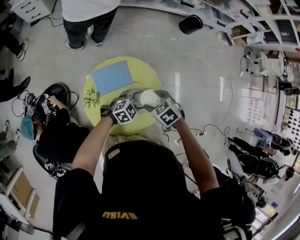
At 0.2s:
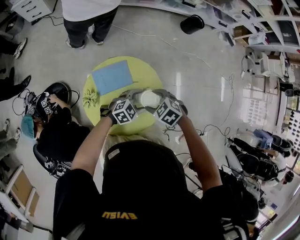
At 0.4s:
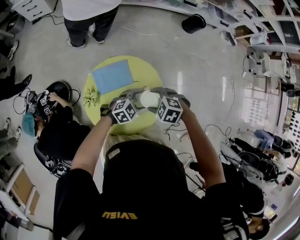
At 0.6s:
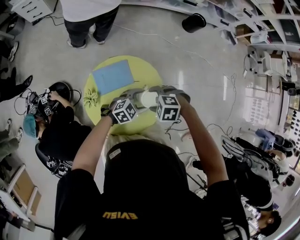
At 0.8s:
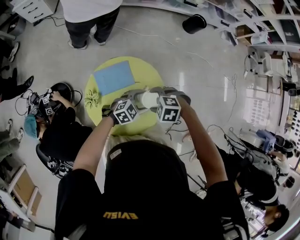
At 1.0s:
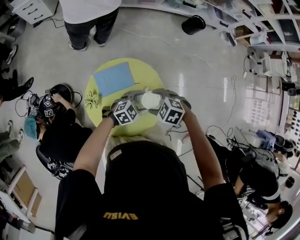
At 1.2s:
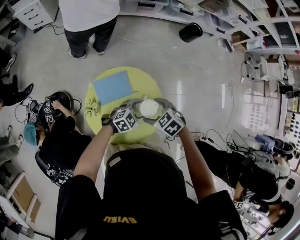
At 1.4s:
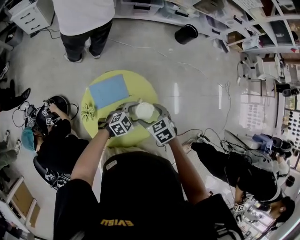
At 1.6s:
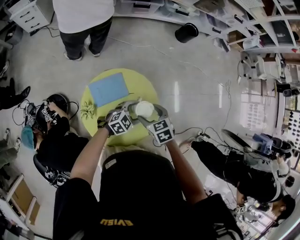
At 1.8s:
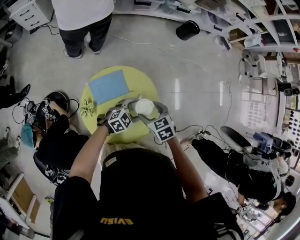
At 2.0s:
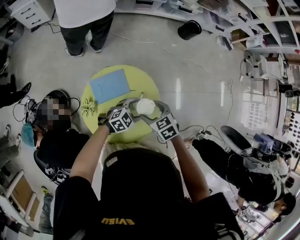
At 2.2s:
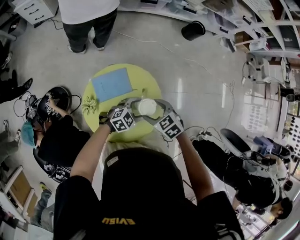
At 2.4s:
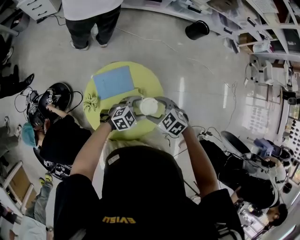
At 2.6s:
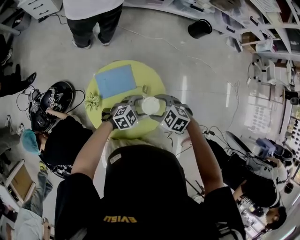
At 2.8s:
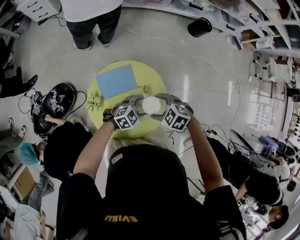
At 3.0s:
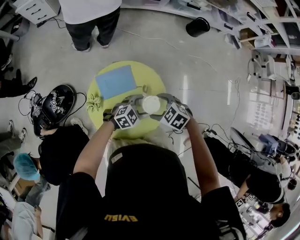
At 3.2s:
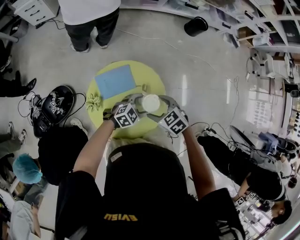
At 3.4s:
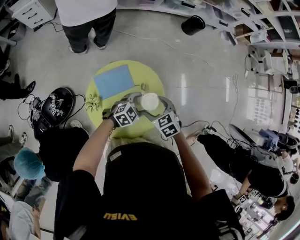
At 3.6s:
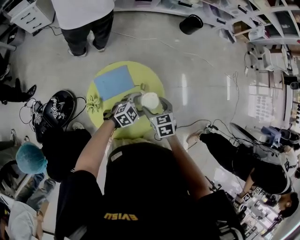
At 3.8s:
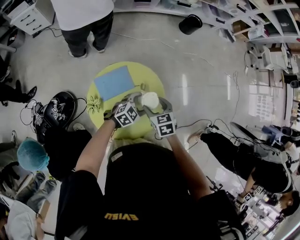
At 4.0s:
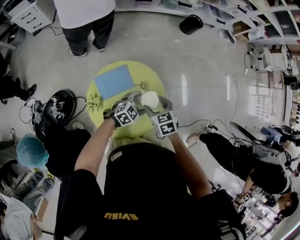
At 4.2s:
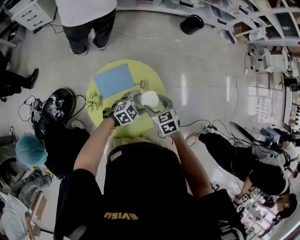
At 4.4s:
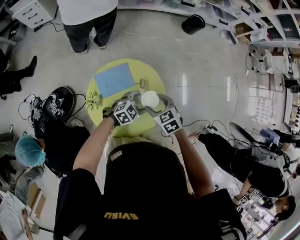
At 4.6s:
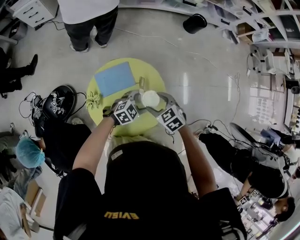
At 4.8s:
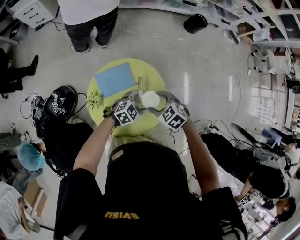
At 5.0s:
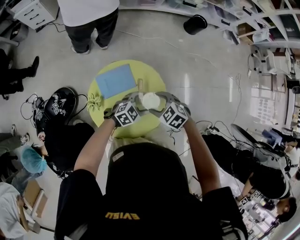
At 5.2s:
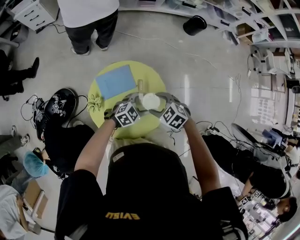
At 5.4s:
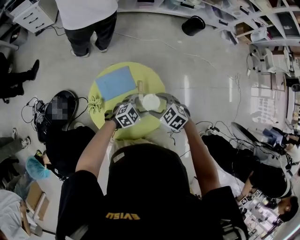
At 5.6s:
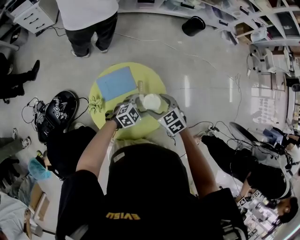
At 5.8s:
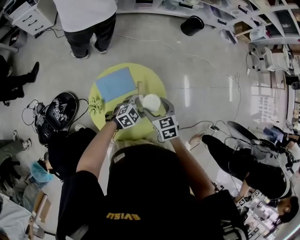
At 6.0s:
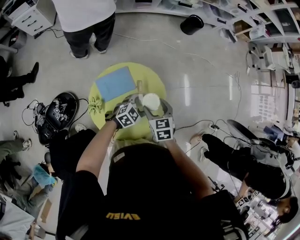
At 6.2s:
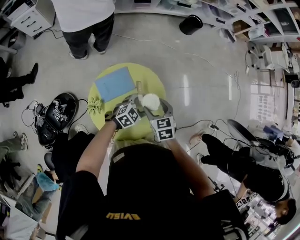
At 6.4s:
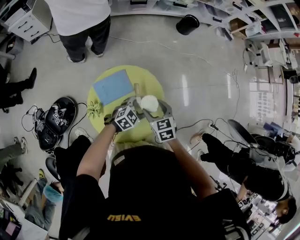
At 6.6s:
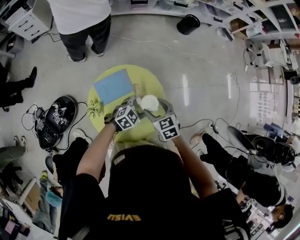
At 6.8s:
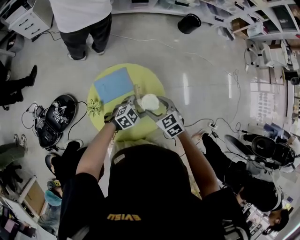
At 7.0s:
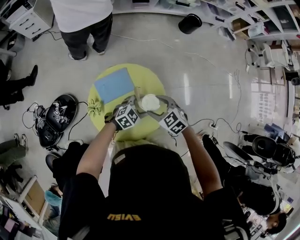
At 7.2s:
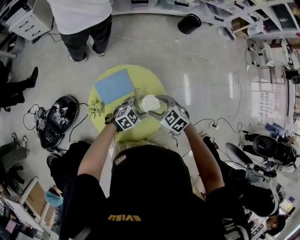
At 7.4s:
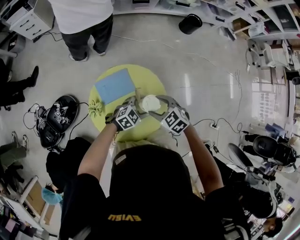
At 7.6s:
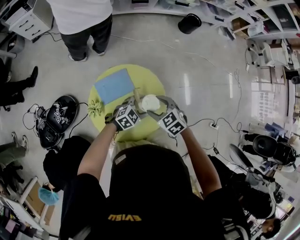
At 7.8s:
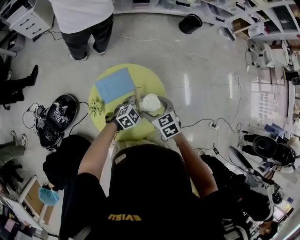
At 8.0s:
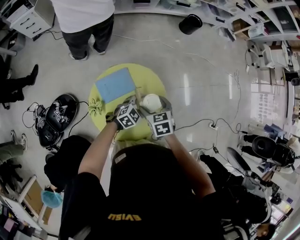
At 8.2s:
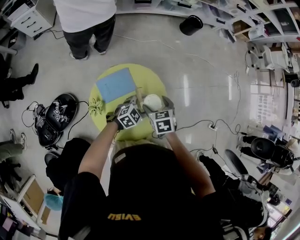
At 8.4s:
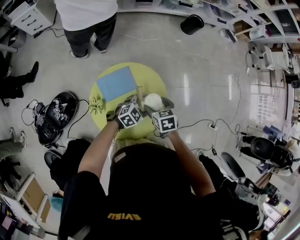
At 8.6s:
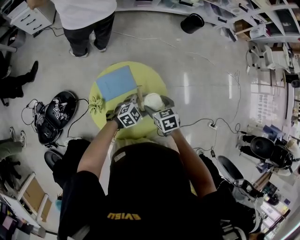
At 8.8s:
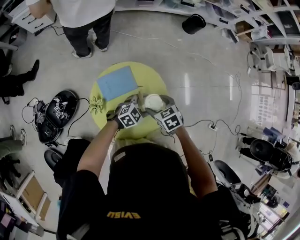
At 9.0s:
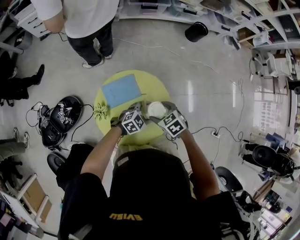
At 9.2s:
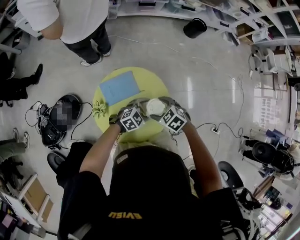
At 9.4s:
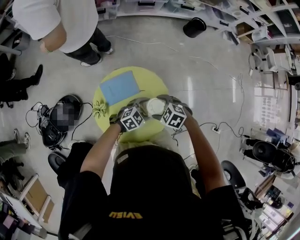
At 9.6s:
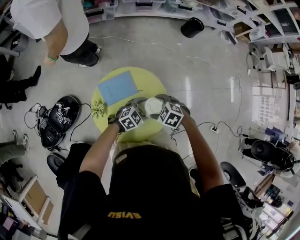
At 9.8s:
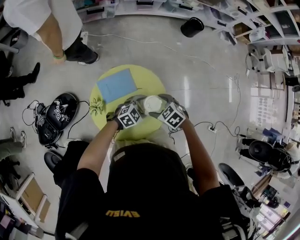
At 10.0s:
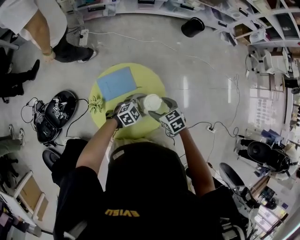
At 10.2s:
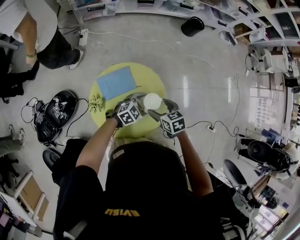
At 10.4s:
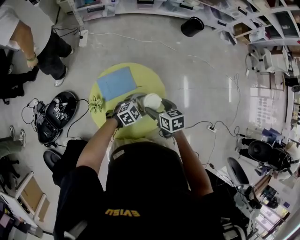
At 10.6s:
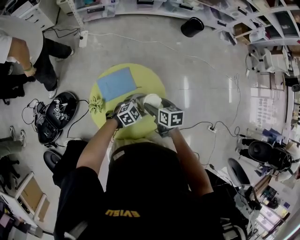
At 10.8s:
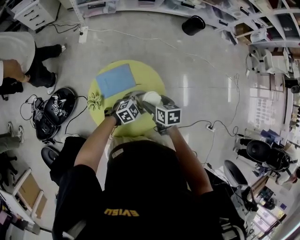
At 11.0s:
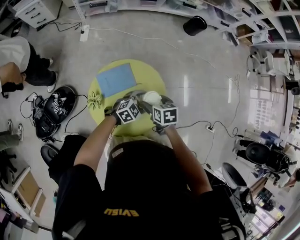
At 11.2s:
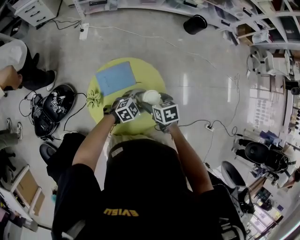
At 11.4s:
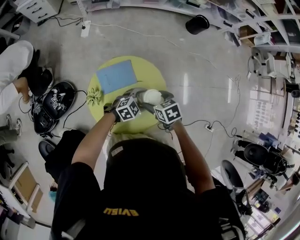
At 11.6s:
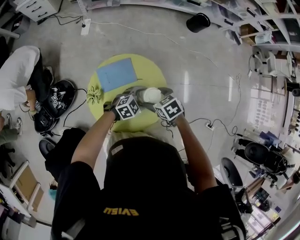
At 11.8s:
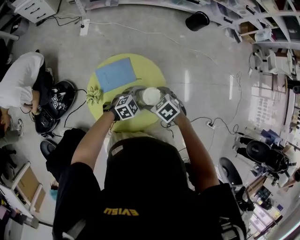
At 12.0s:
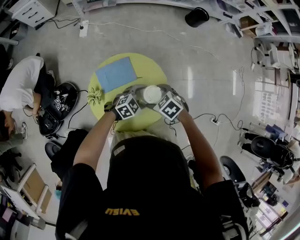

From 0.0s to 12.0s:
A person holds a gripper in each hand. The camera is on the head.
From 0.0s to 1.6s: The right gripper turns by about 20 degrees.
From 1.6s to 3.0s: The right gripper turns by approximately 40 degrees.
From 3.0s to 4.4s: The right gripper turns by some 30 degrees.
From 4.4s to 6.0s: The right gripper rotates some 20 degrees.
From 6.0s to 7.6s: The right gripper turns by about 30 degrees.
From 9.0s to 10.4s: The right gripper turns by about 30 degrees.
From 10.4s to 12.0s: The right gripper turns by approximately 40 degrees.

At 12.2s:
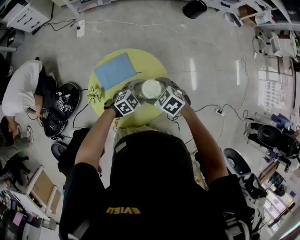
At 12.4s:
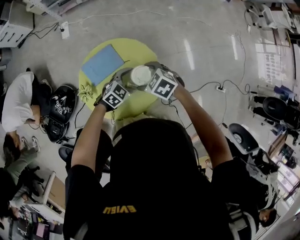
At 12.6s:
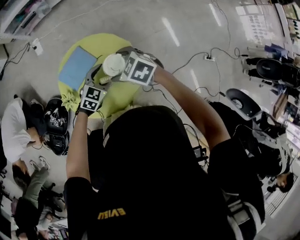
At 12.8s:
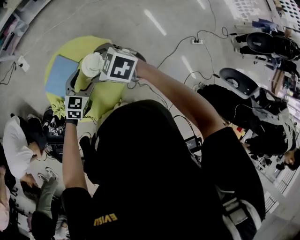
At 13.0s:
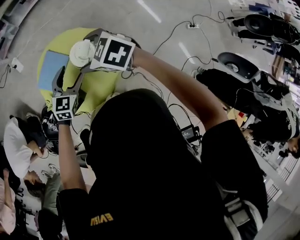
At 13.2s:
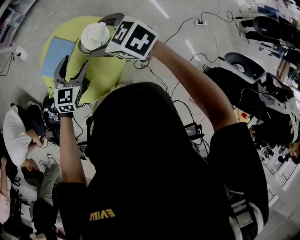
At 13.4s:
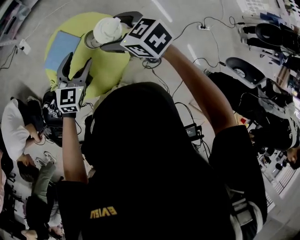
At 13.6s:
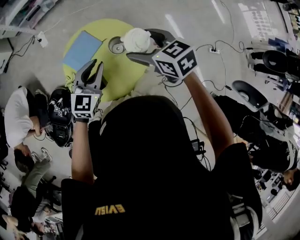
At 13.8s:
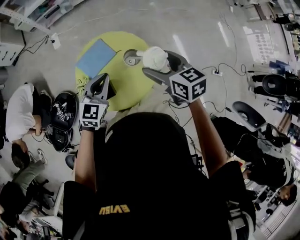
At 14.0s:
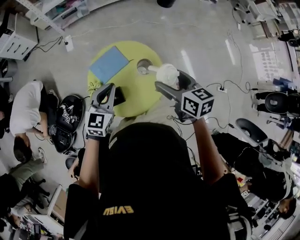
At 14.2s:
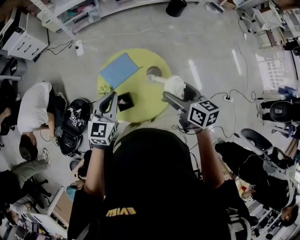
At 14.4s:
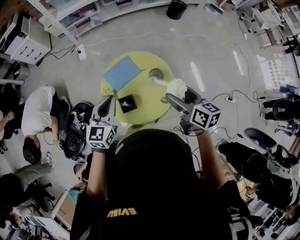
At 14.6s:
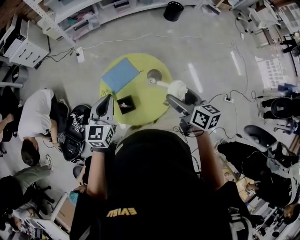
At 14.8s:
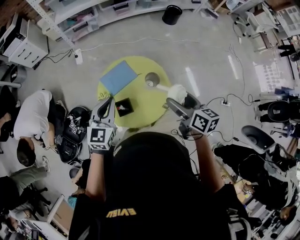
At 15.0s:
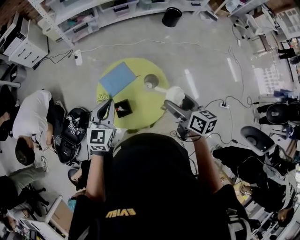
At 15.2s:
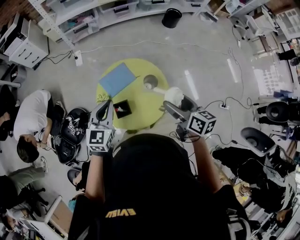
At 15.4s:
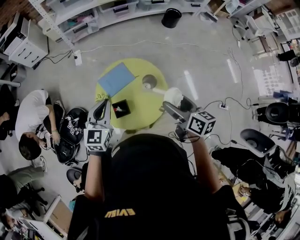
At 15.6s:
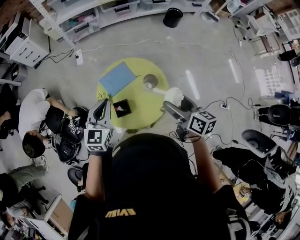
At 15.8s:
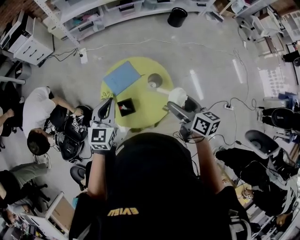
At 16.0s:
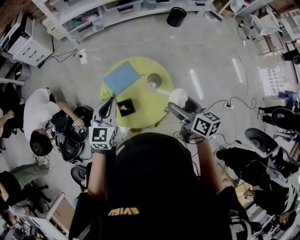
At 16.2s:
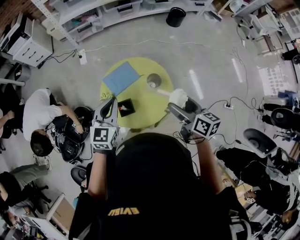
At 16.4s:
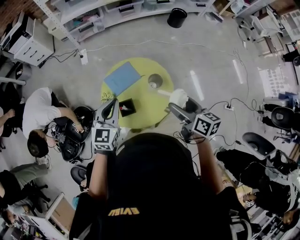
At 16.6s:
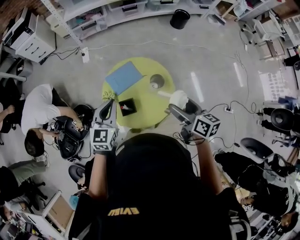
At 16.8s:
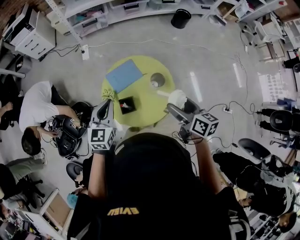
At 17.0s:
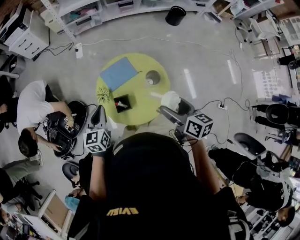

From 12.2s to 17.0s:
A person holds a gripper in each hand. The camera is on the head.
From 12.2s to 13.8s: Both grippers move upward, some 15 cm. The left gripper swivels about 30 degrees, and closes its fingers, while the right gripper rotates roughly 50 degrees.
From 13.8s to 15.4s: The left gripper is displaced to the left and upward by roughly 10 cm; the right gripper moves backward, roughly 5 cm, and turns by approximately 20 degrees.
From 15.4s to 17.0s: The right gripper shifts by approximately 5 cm; the left gripper shifts roughly 10 cm to the left and downward, and changes its angle by some 20 degrees.

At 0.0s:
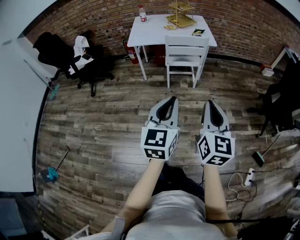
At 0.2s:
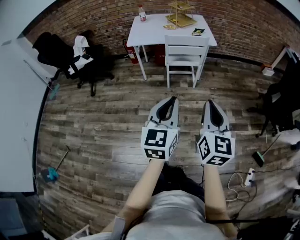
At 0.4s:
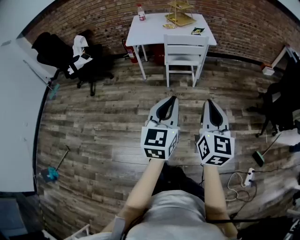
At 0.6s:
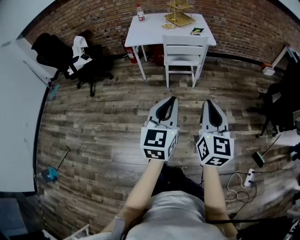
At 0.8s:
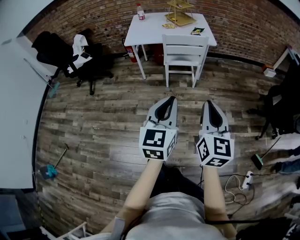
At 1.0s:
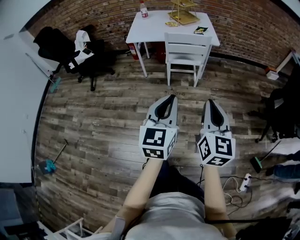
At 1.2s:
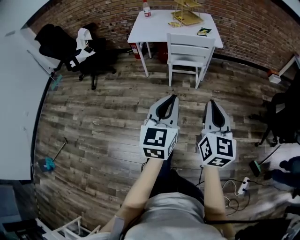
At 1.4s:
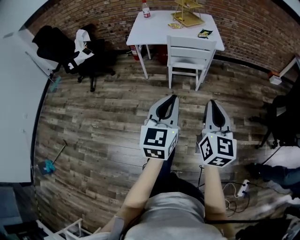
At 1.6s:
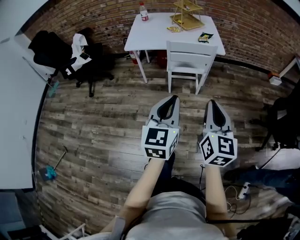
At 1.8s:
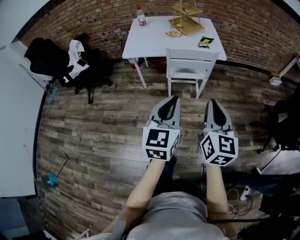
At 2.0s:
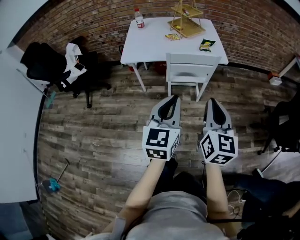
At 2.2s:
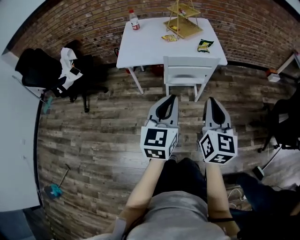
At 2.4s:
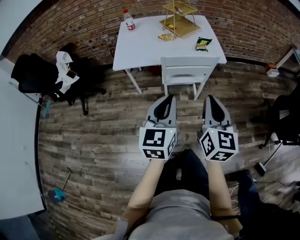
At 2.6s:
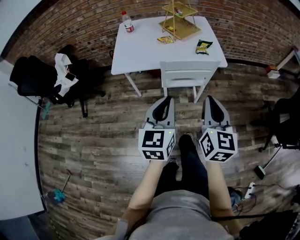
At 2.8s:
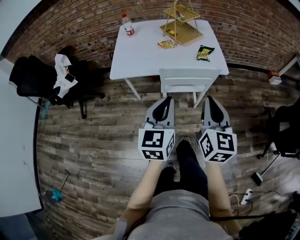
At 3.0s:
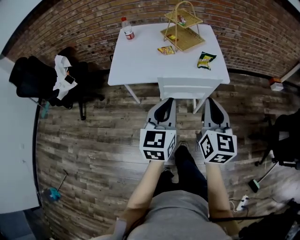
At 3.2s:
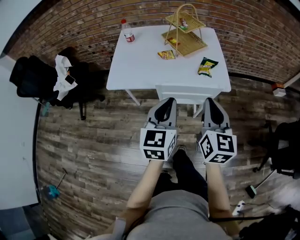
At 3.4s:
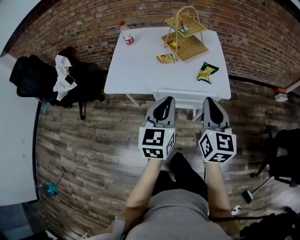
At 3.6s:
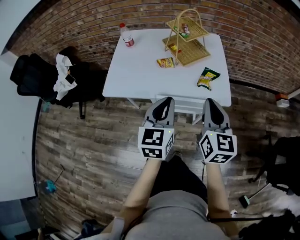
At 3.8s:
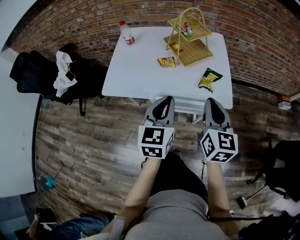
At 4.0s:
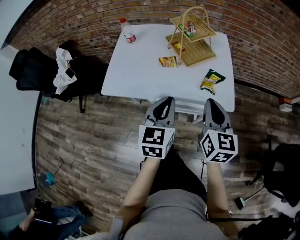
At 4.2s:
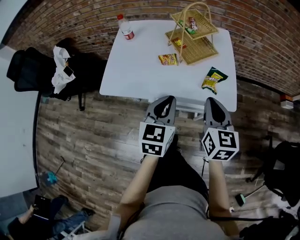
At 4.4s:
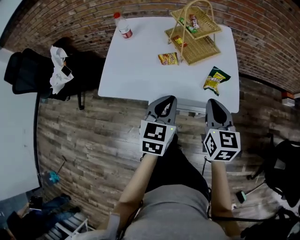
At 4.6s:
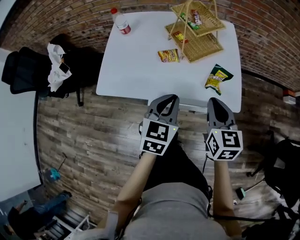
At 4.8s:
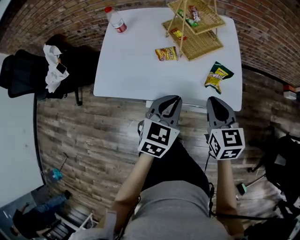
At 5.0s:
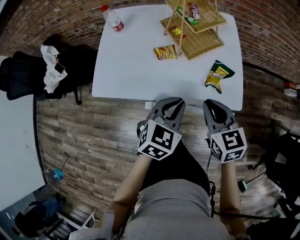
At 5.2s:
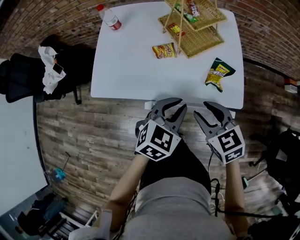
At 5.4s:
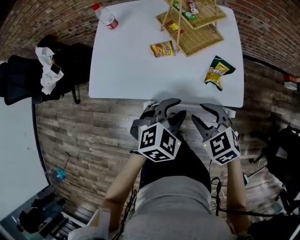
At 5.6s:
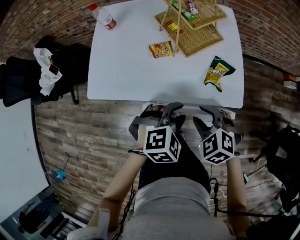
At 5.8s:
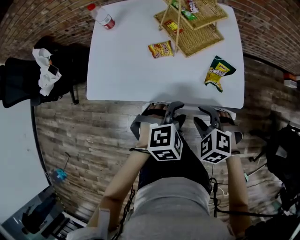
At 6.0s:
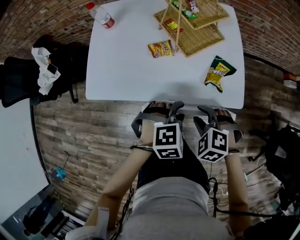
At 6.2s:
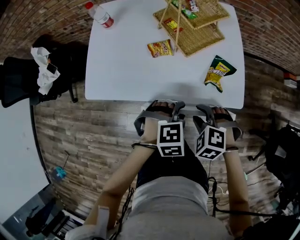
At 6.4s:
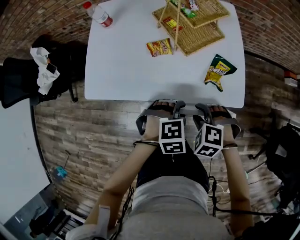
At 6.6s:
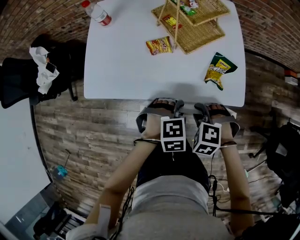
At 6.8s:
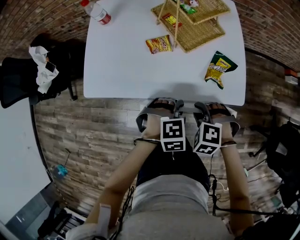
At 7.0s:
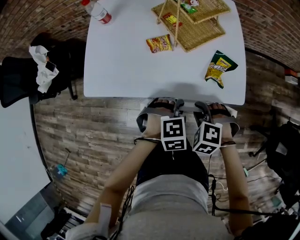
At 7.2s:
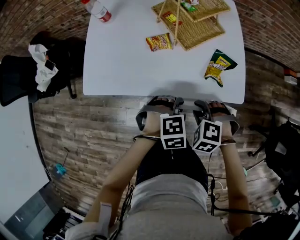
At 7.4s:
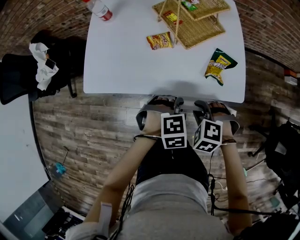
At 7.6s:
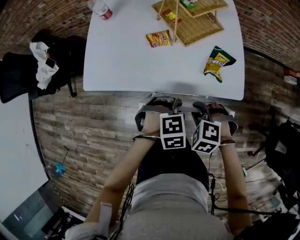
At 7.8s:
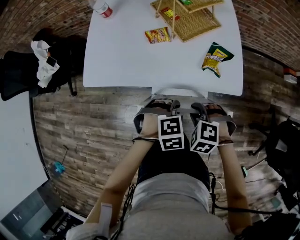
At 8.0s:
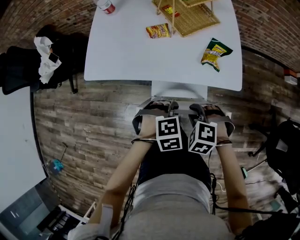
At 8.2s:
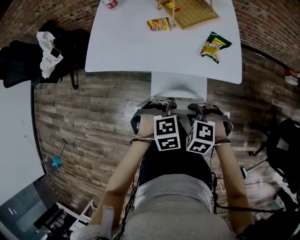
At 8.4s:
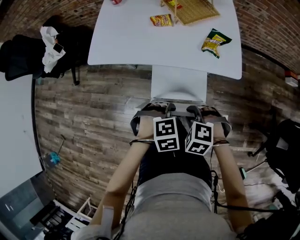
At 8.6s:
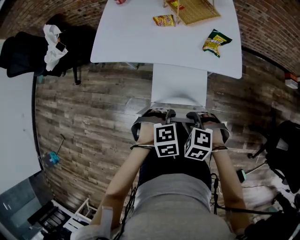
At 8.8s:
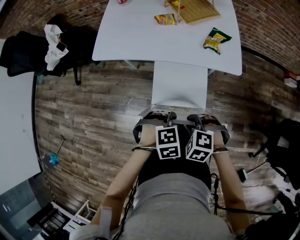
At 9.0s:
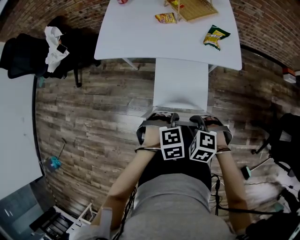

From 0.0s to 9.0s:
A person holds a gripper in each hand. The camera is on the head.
From 0.0s to 1.6s: The grippers both shift forward by about 15 cm.
From 1.6s to 3.0s: The two grippers go about 30 cm forward.
From 3.0s to 4.4s: Both grippers travel together forward, about 20 cm.
From 4.4s to 6.0s: The left gripper heads downward and to the right, covering roughly 15 cm, angles its fingers downward, by approximately 40 degrees, and opens its fingers. The right gripper travels downward by approximately 15 cm, tips its fingers downward by roughly 40 degrees, and opens up.
From 6.0s to 7.6s: The left gripper ends up approximately 5 cm from where it was. Meanwhile the right gripper closes its fingers.
From 7.6s to 9.0s: Both grippers move backward, some 25 cm.
